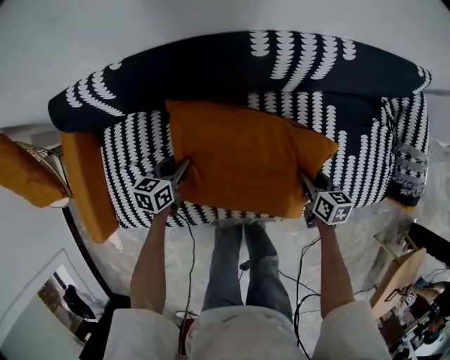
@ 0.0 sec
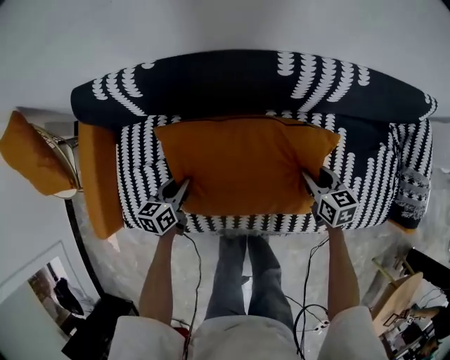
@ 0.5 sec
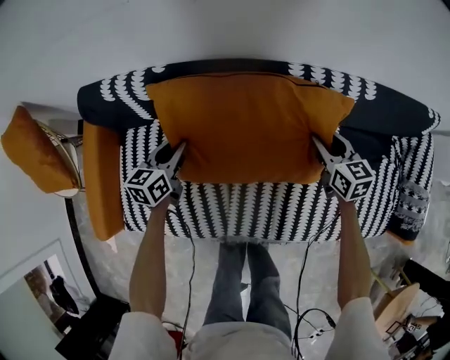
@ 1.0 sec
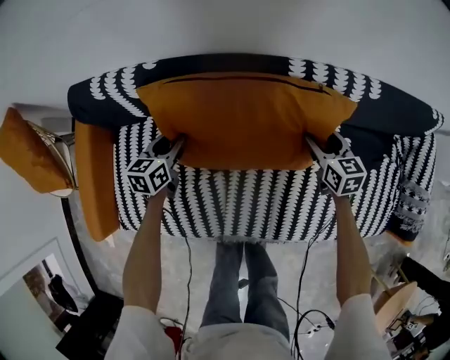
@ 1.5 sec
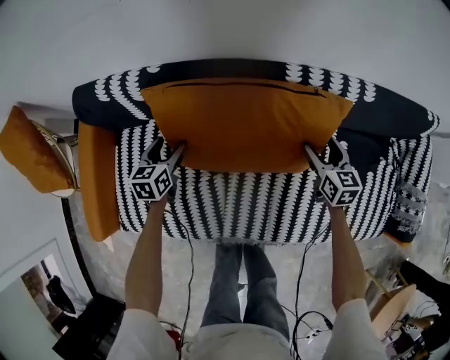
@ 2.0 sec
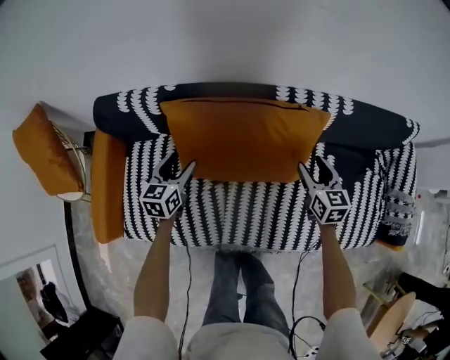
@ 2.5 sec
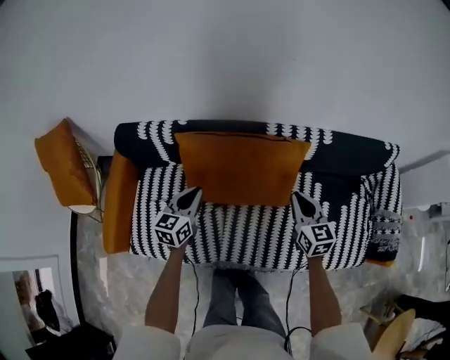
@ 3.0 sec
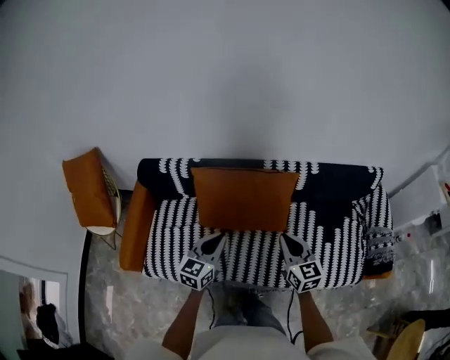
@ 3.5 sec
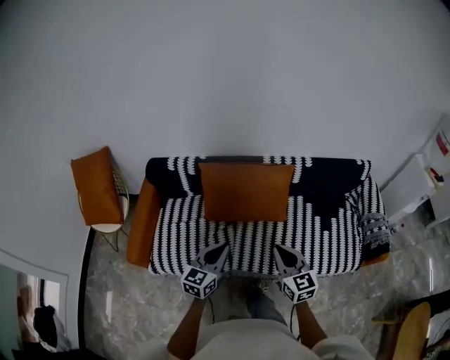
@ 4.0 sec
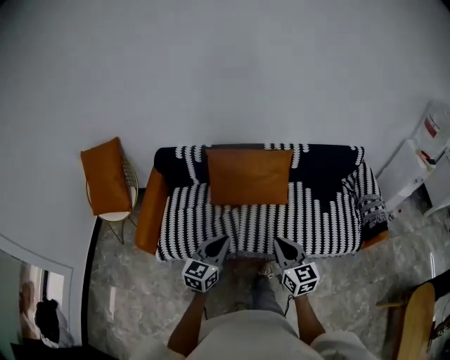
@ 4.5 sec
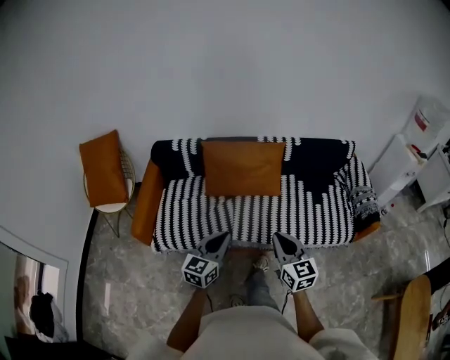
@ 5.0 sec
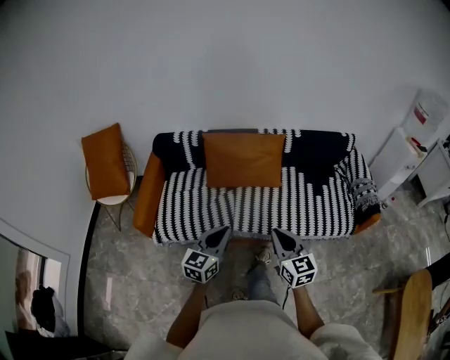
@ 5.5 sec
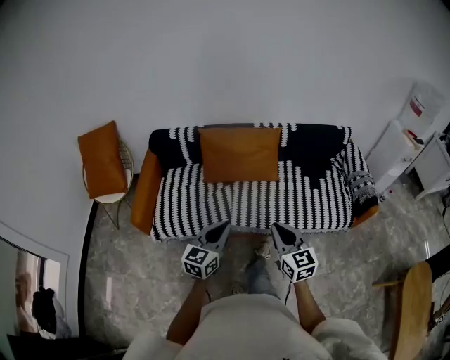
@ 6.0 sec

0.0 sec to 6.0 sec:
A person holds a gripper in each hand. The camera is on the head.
0.0 sec to 2.0 sec: The left gripper shifts roughly 15 cm to the left and forward, changes its angle by some 20 degrees, and opens. Meanwhile the right gripper is displaced forward by roughly 20 cm, turns by roughly 30 degrees, and opens.
2.0 sec to 4.0 sec: The two grippers travel together, backward, approximately 40 cm. The grippers both shift upward by about 35 cm. The left gripper swivels approximately 30 degrees, and closes. Meanwhile the right gripper swivels roughly 30 degrees, and closes up.
4.0 sec to 6.0 sec: The grippers both shift backward by about 20 cm.

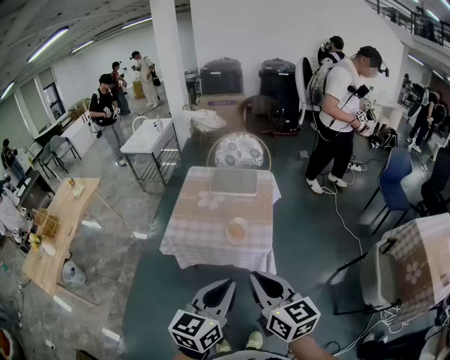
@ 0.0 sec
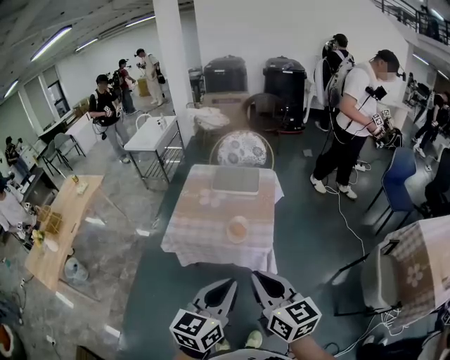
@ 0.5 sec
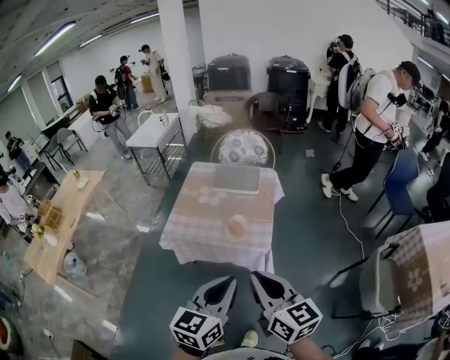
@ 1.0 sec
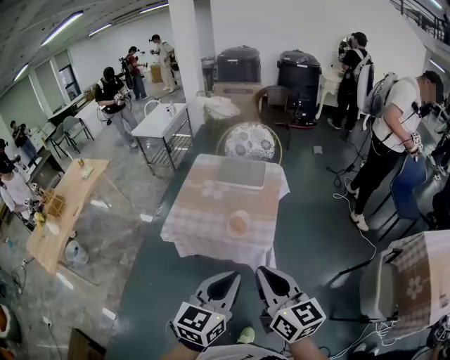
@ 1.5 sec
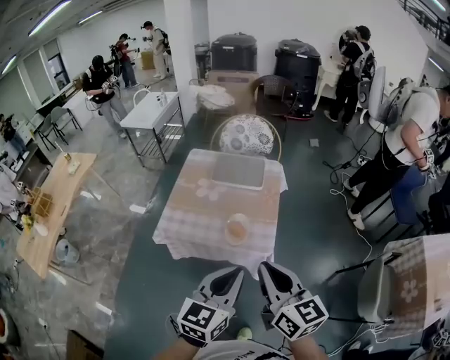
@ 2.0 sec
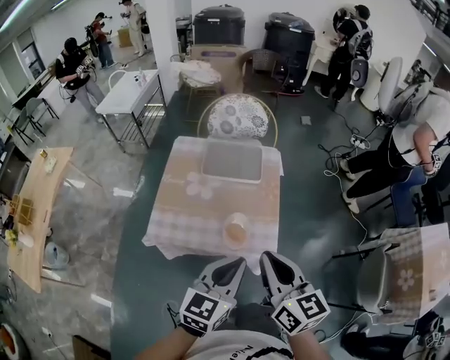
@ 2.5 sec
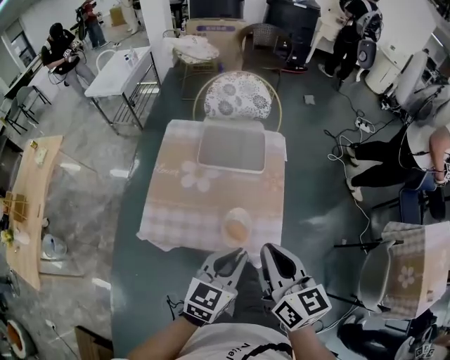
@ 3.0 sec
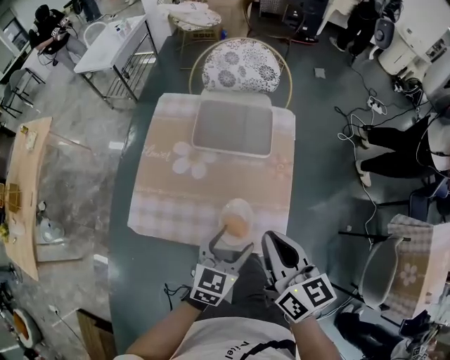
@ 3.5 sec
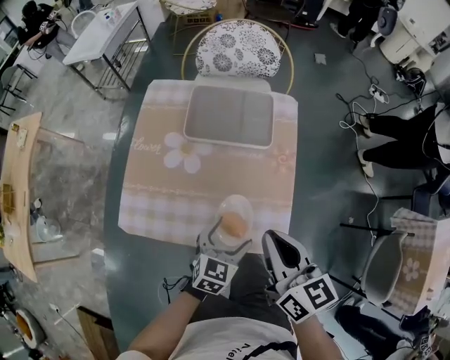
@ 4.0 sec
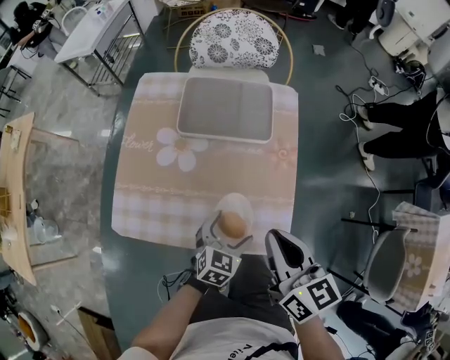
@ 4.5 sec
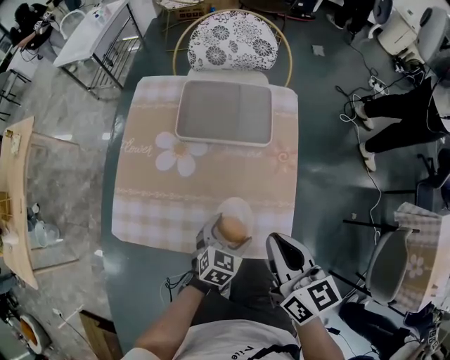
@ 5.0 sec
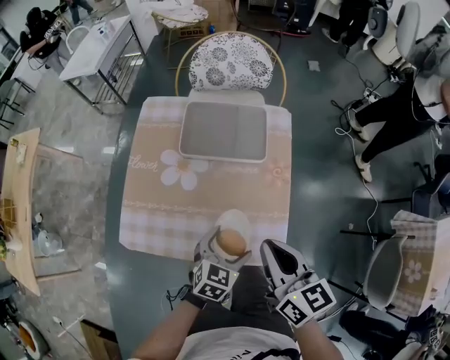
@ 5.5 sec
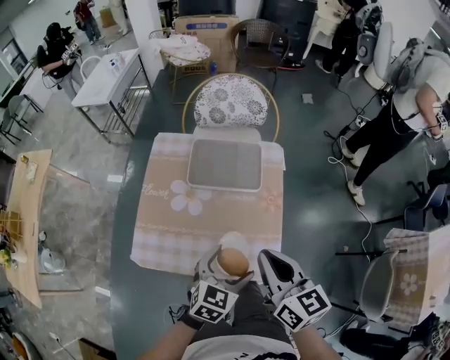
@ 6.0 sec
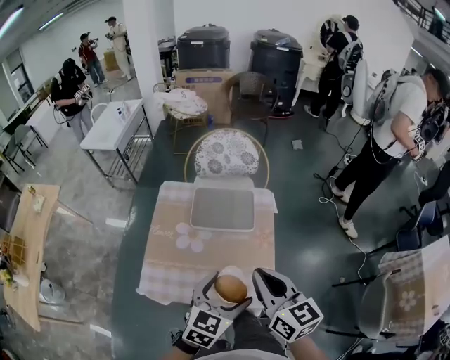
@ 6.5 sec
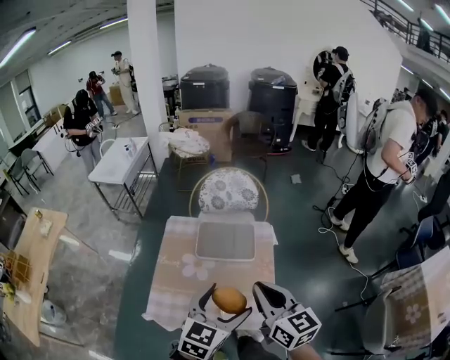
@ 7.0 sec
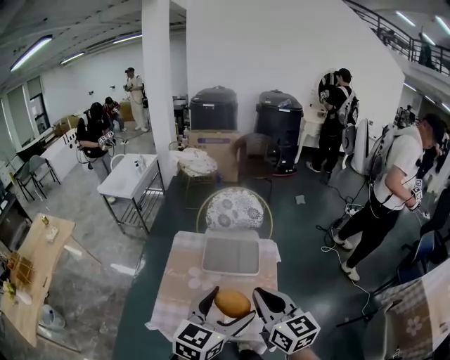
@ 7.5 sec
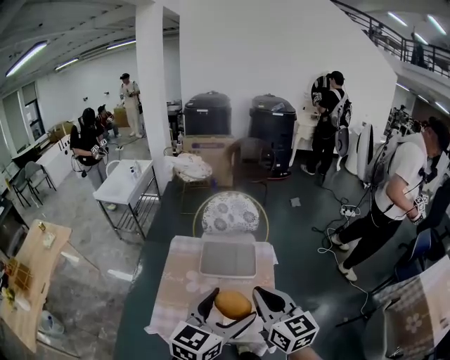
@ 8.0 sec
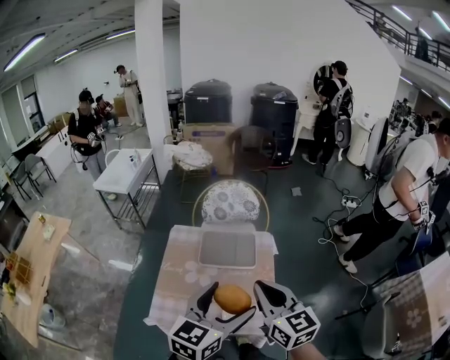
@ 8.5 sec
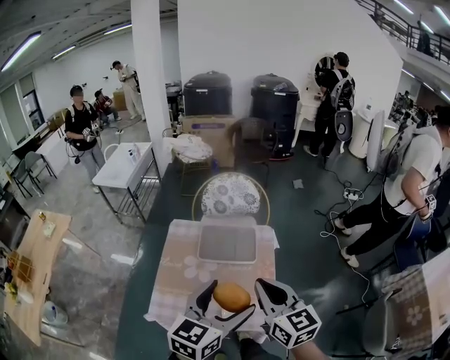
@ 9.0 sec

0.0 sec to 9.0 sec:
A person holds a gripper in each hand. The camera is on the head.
0.0 sec to 2.0 sec: The grippers both shift forward by approximately 10 cm.
2.0 sec to 4.5 sec: The left gripper moves downward and forward, about 50 cm, rotates roughly 30 degrees, and opens. Meanwhile the right gripper moves forward and downward, some 35 cm.
4.5 sec to 7.0 sec: The left gripper travels upward by approximately 35 cm, and swivels some 20 degrees. The right gripper moves upward, about 20 cm.
7.0 sec to 9.0 sec: The left gripper goes some 5 cm upward.

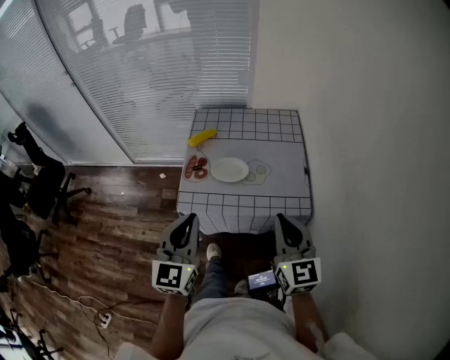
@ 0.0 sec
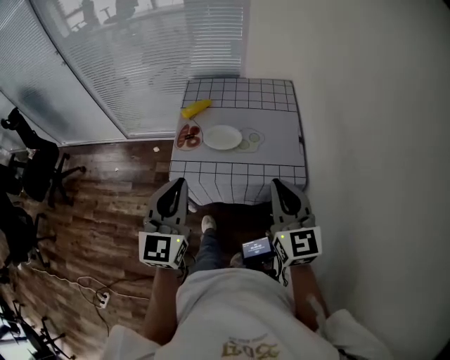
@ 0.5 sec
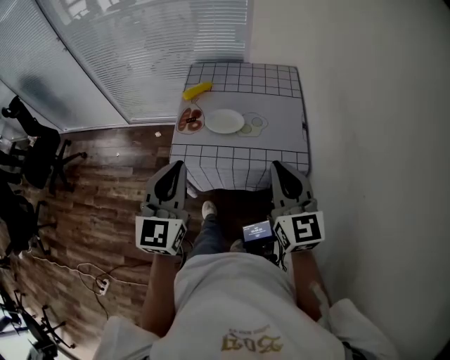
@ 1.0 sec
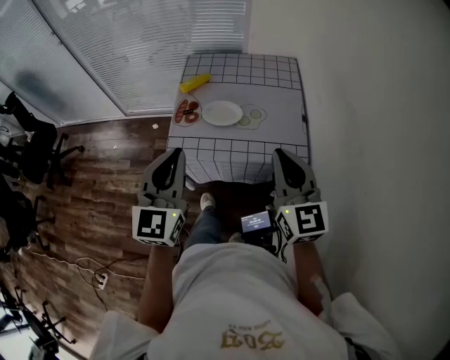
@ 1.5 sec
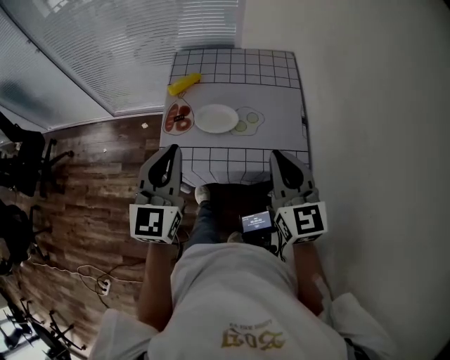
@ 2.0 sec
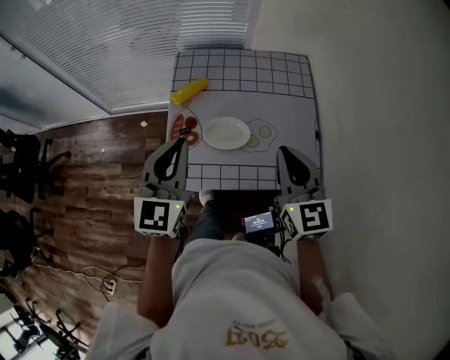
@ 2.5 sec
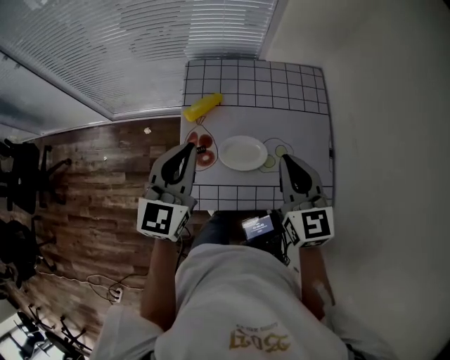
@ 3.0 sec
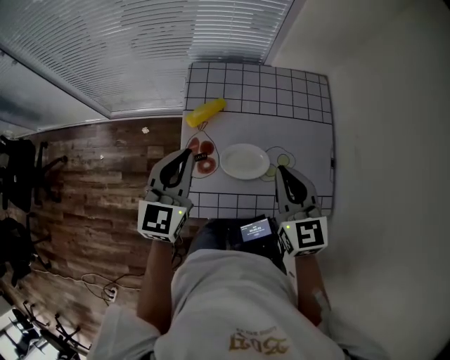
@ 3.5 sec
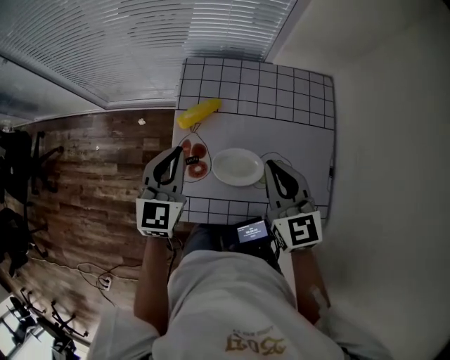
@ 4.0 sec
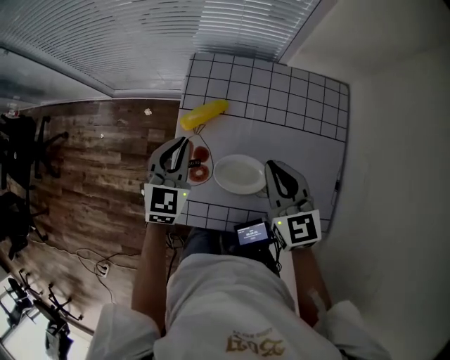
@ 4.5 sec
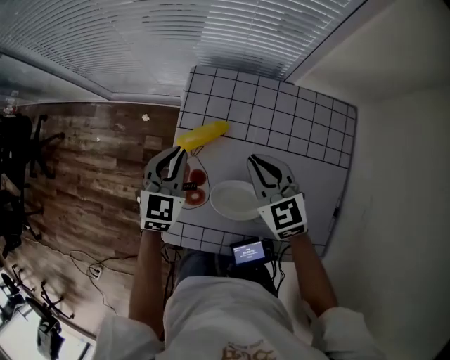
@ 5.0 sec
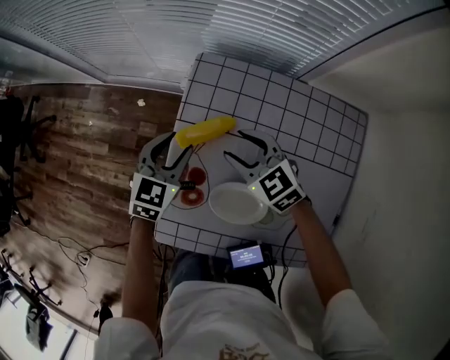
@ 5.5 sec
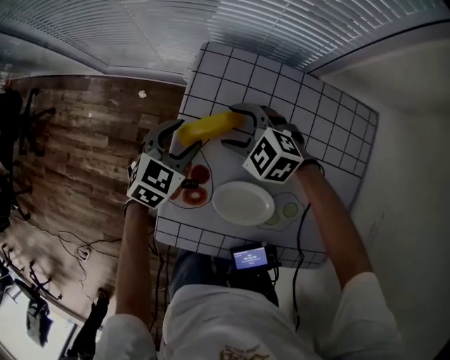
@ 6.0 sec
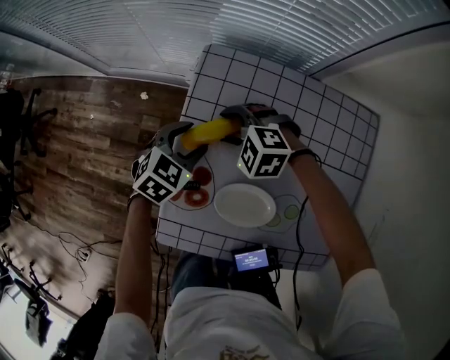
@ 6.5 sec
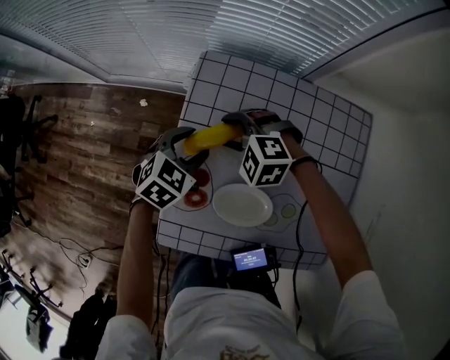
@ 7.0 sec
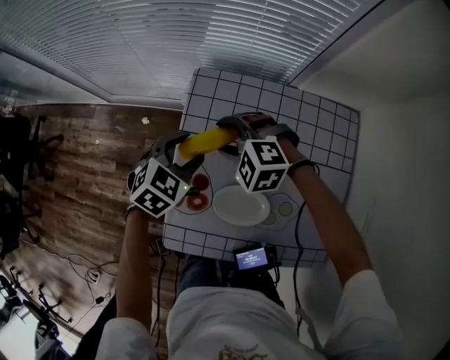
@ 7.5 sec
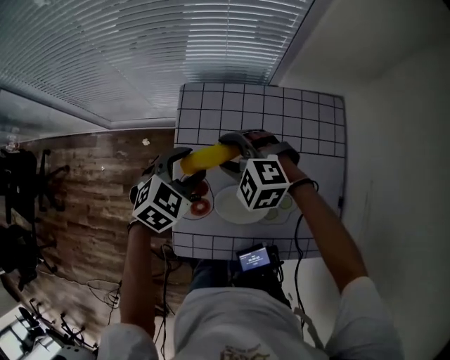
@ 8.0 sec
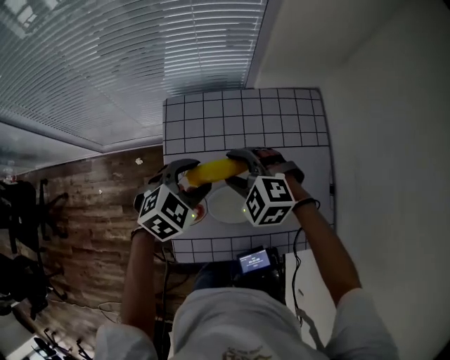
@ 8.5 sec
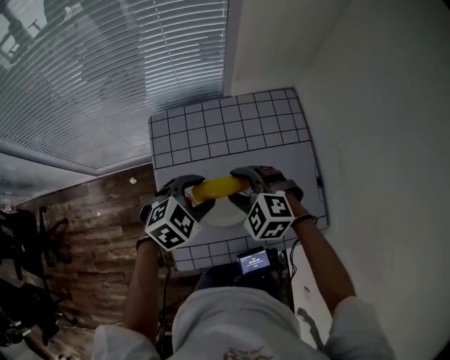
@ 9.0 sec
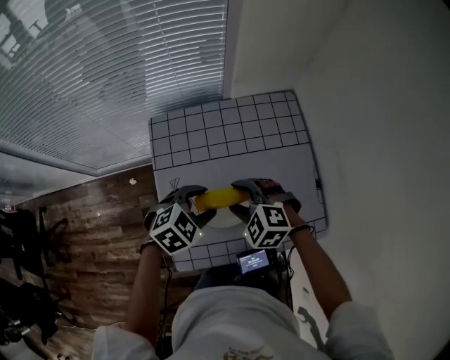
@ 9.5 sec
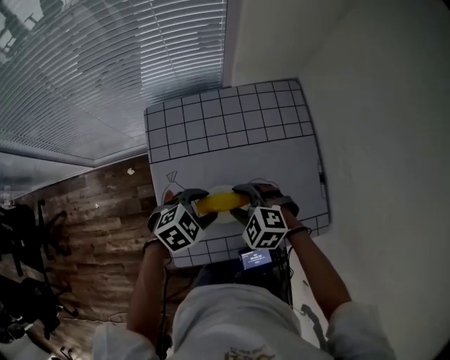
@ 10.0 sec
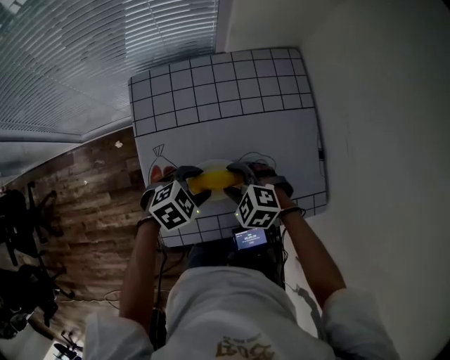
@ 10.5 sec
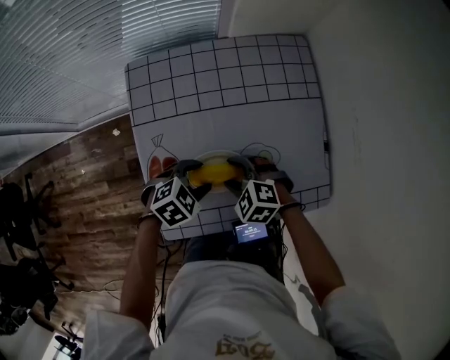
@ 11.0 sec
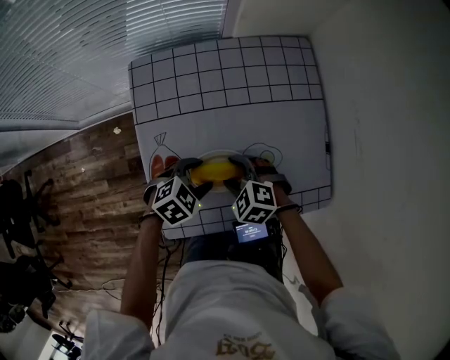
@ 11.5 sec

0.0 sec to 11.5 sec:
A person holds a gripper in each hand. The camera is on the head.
0.0 sec to 2.0 sec: Both grippers move forward, about 10 cm.
2.0 sec to 4.0 sec: The right gripper goes roughly 25 cm forward and to the left. Meanwhile the left gripper goes approximately 25 cm forward and downward.
4.0 sec to 6.0 sec: The right gripper shifts about 30 cm downward, forward and to the left, points its fingers approximately 30 degrees further downward, and opens. Meanwhile the left gripper travels downward and forward by approximately 20 cm, rotates about 30 degrees, and opens up.
6.0 sec to 7.5 sec: The two grippers go approximately 5 cm upward.
7.5 sec to 9.5 sec: The right gripper moves approximately 20 cm, and rotates approximately 30 degrees, while the left gripper moves roughly 15 cm, and changes its angle by about 30 degrees.
9.5 sec to 11.5 sec: The two grippers go about 10 cm downward.
